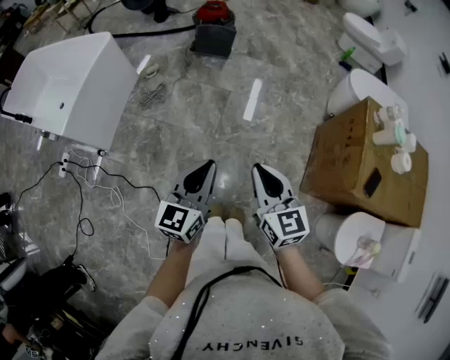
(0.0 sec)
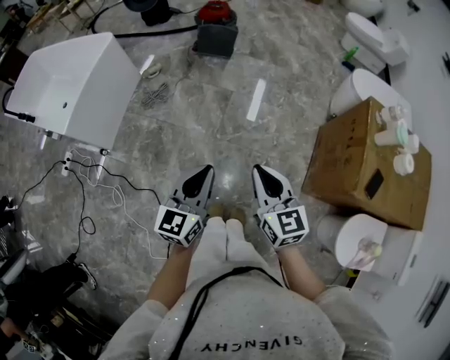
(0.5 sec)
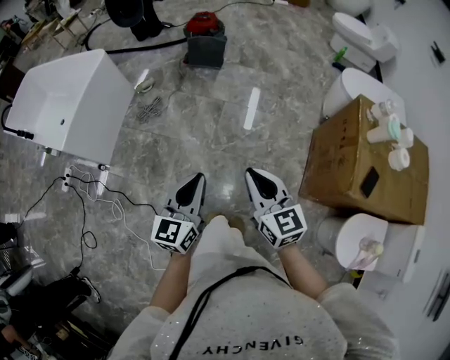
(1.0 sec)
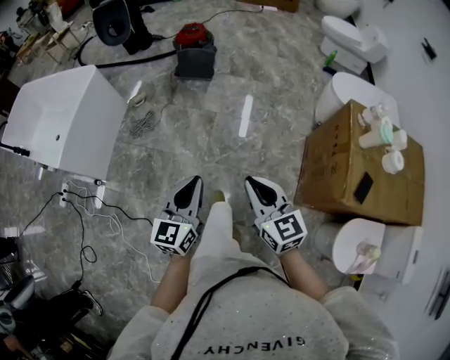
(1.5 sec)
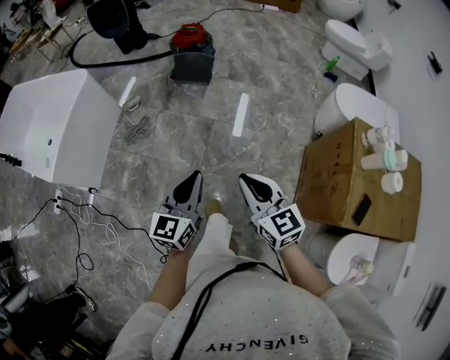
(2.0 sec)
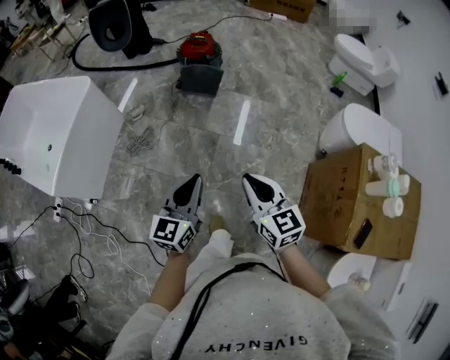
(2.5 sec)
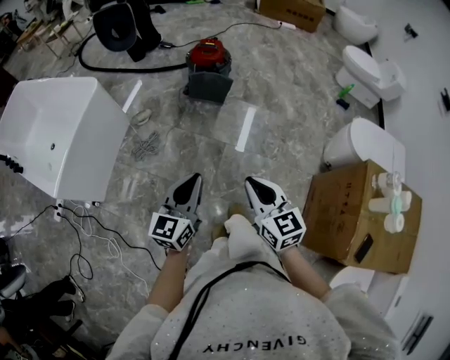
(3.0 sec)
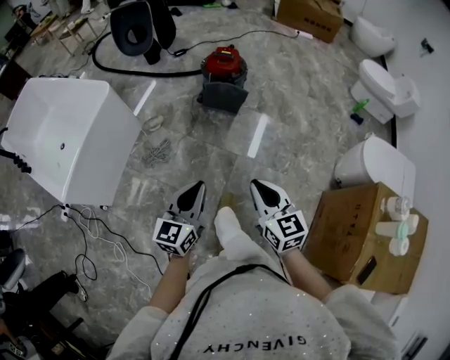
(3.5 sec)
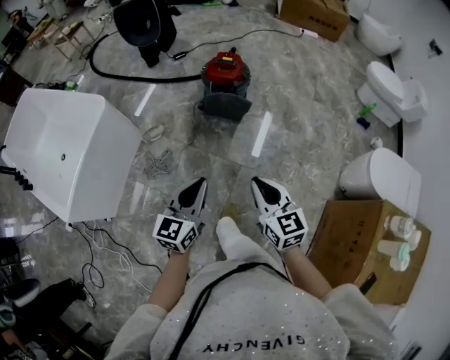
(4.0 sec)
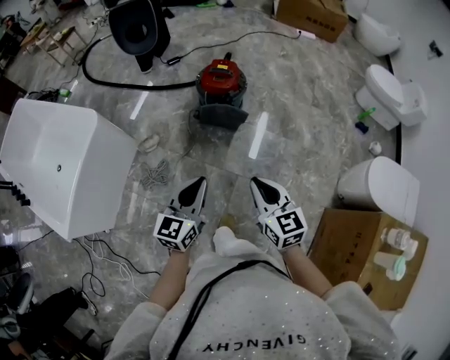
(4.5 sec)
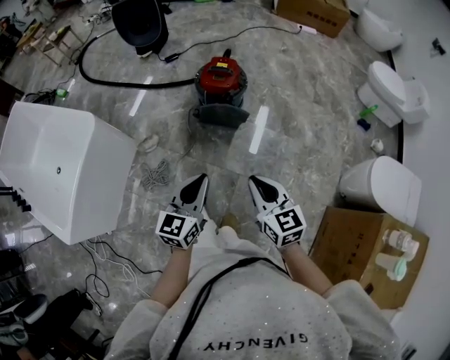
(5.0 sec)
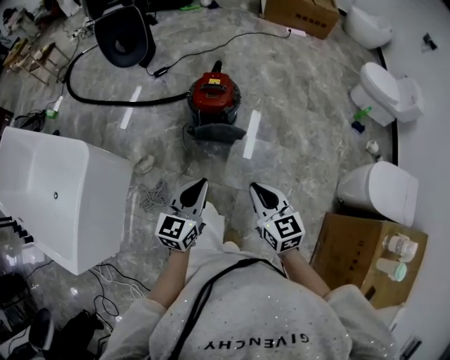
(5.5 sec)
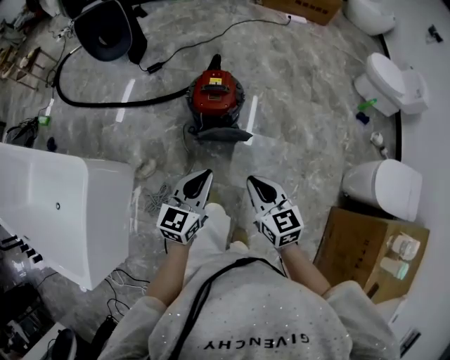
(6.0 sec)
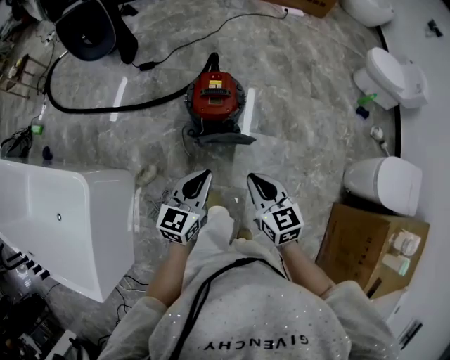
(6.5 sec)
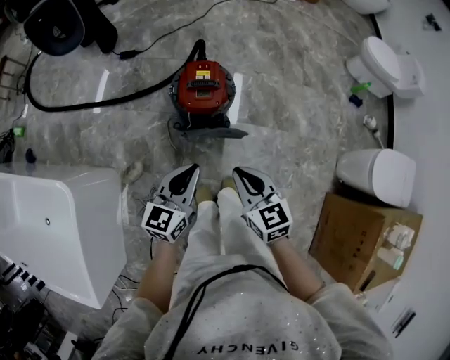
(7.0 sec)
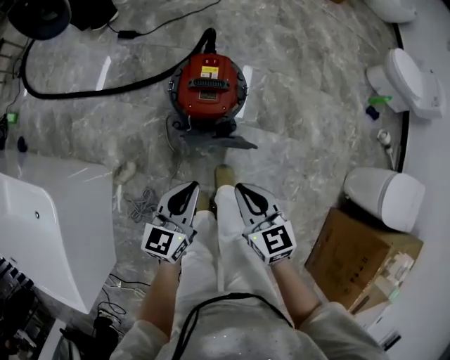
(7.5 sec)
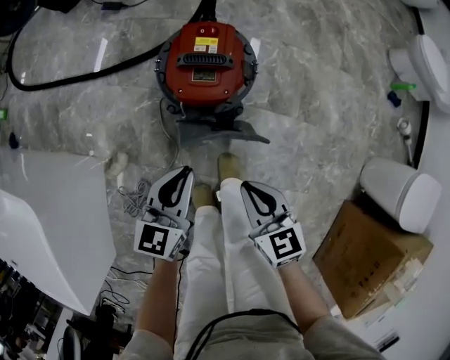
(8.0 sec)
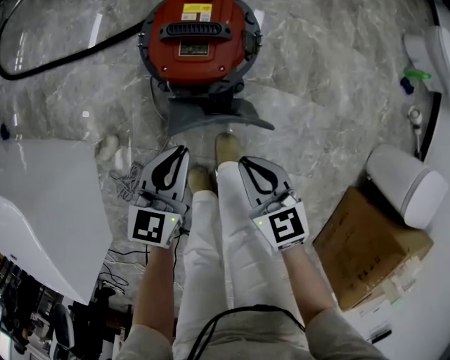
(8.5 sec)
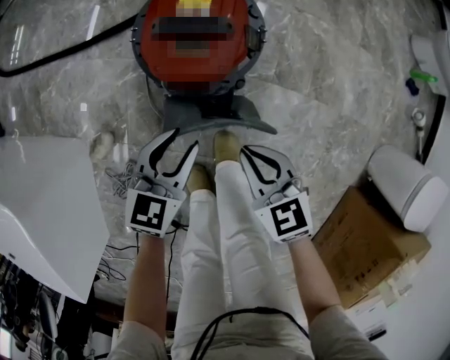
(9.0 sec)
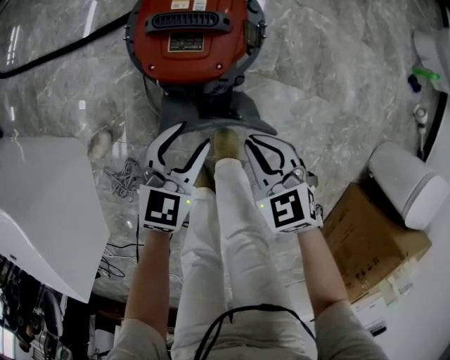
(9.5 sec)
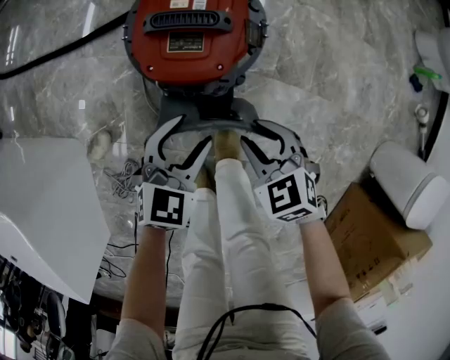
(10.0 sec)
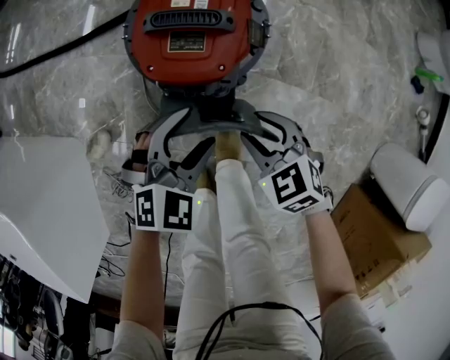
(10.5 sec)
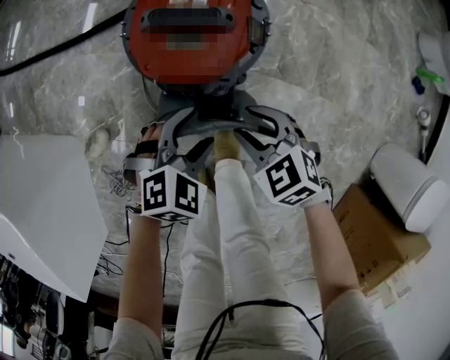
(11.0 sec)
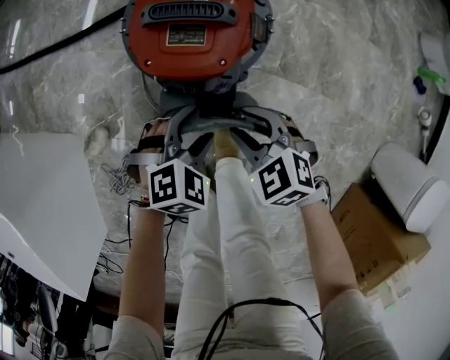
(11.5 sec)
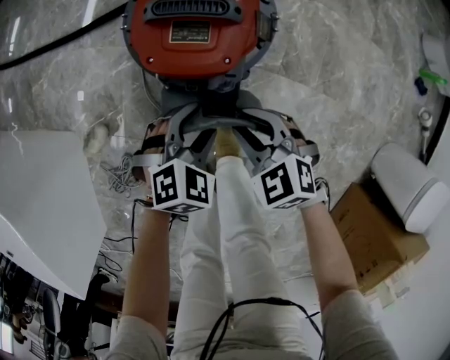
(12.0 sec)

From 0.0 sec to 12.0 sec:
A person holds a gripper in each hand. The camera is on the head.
From 0.0 sec to 2.0 sec: Both grippers move forward, about 15 cm.
From 2.0 sec to 4.0 sec: The two grippers go about 30 cm forward.
From 4.0 sec to 6.0 sec: Both grippers travel together forward, some 30 cm.
From 6.0 sec to 8.0 sec: The grippers both shift downward and forward by approximately 30 cm.
From 8.0 sec to 10.0 sec: The left gripper is displaced downward and to the right by approximately 15 cm, rotates roughly 30 degrees, and opens its fingers. Meanwhile the right gripper travels downward and forward by approximately 15 cm, changes its angle by some 30 degrees, and opens.
From 10.0 sec to 12.0 sec: The left gripper goes roughly 5 cm downward, and changes its angle by some 20 degrees.

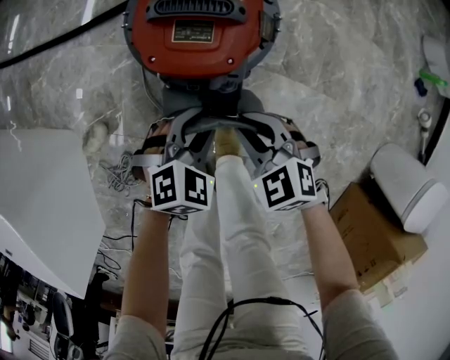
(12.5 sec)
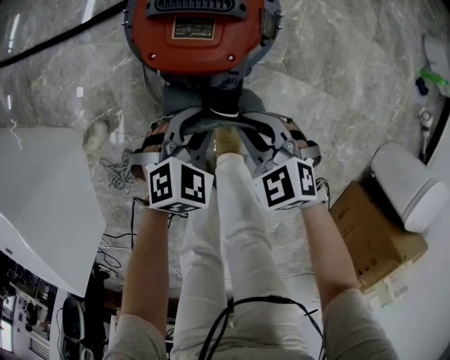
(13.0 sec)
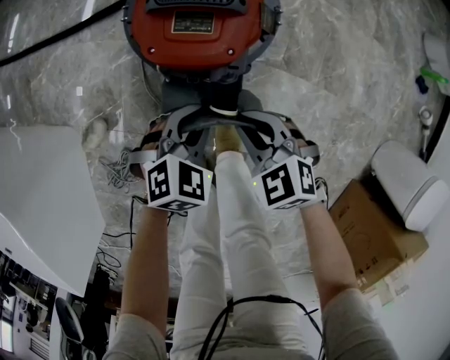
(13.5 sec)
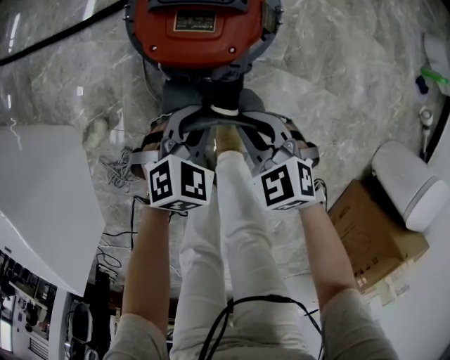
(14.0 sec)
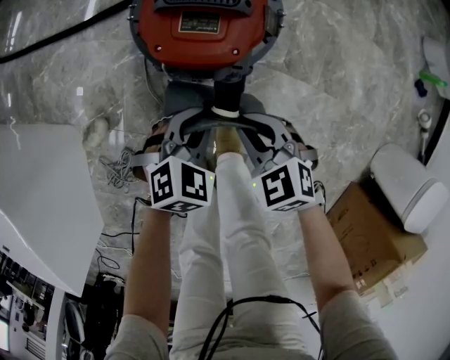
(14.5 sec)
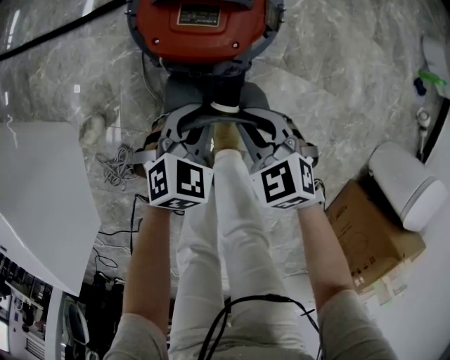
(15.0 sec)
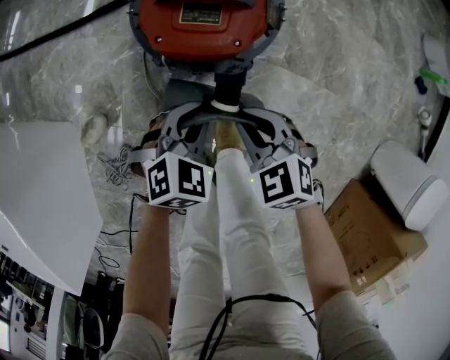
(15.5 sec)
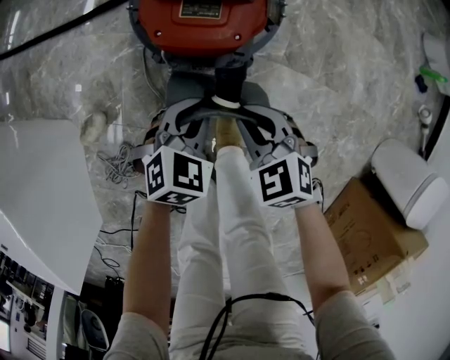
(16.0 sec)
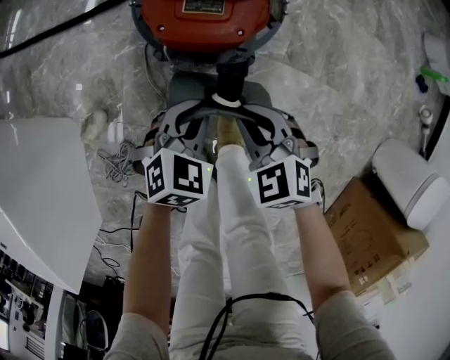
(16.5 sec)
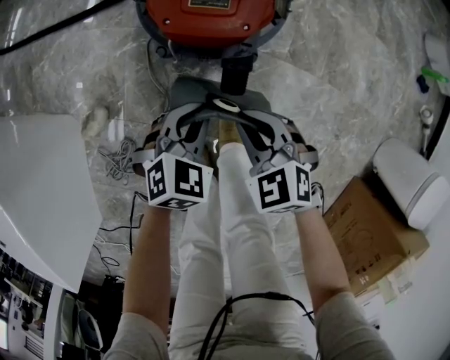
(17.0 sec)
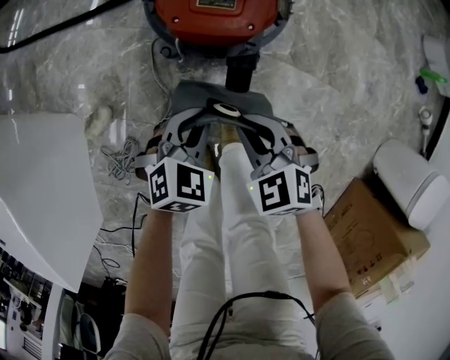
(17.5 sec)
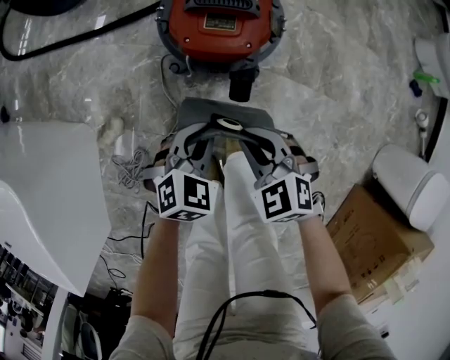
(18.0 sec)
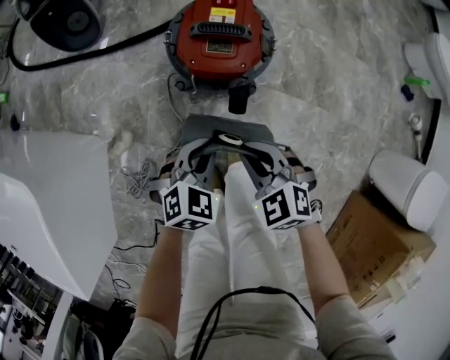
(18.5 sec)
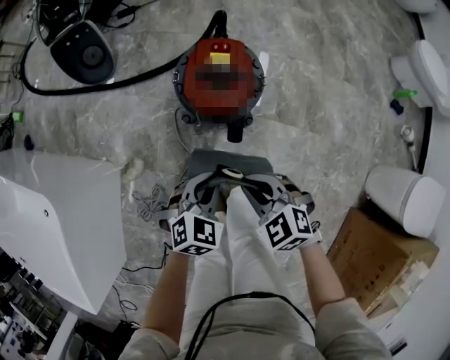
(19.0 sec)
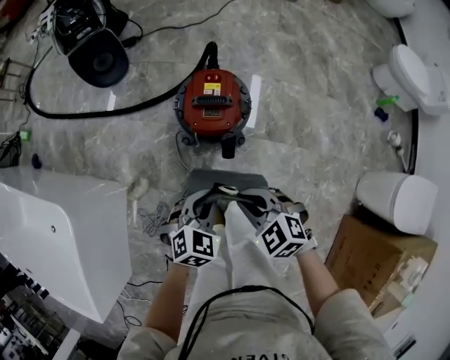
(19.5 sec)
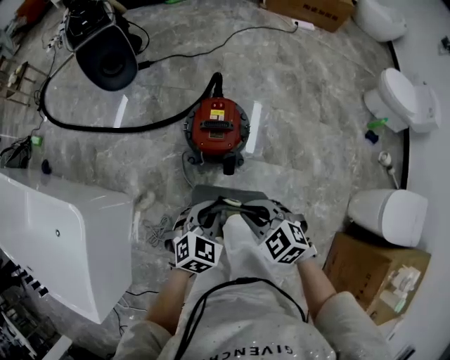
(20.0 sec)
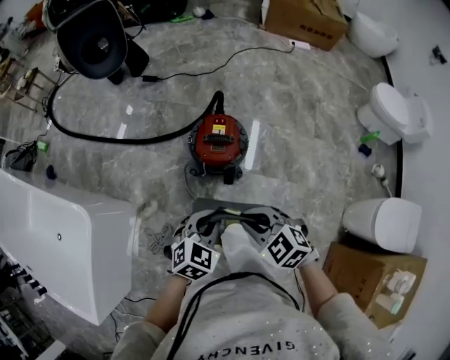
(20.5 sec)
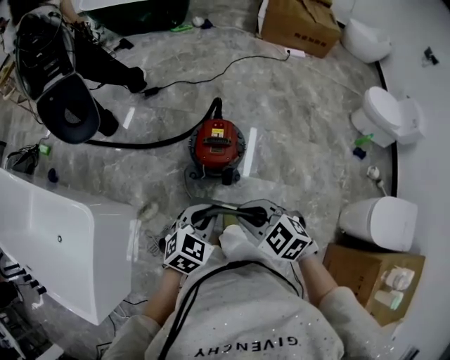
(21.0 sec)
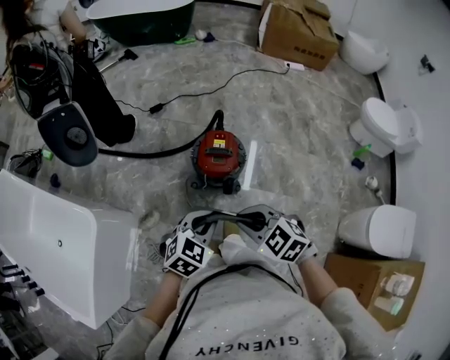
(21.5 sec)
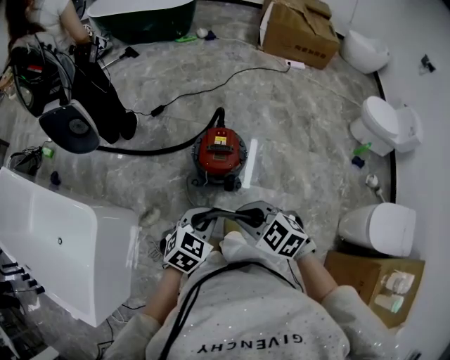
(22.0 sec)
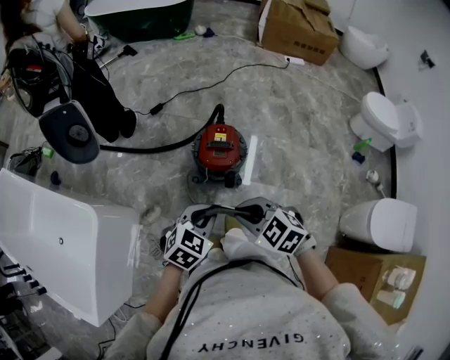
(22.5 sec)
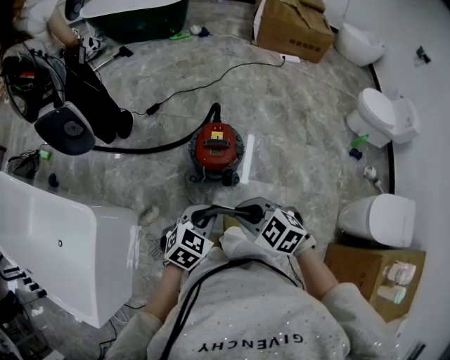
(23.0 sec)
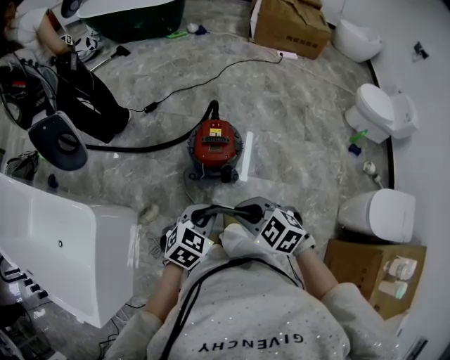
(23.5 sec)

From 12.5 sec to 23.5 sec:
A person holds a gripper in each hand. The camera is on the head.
From 12.5 sec to 16.0 sec: The grippers make only small movements.
From 16.0 sec to 18.0 sec: Both grippers move upward, approximately 5 cm.
From 18.0 sec to 20.0 sec: The two grippers go roughly 25 cm upward.
From 20.0 sec to 21.5 sec: Both grippers move upward, approximately 10 cm.
From 21.5 sec to 23.5 sec: The grippers move only a little.

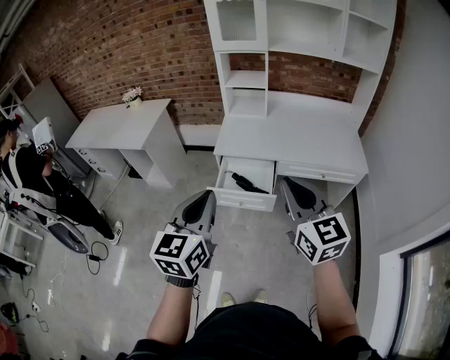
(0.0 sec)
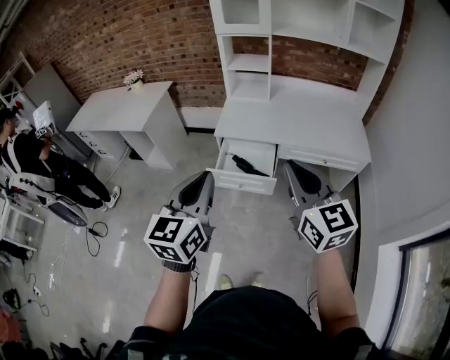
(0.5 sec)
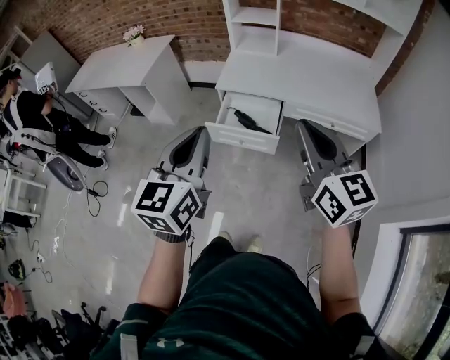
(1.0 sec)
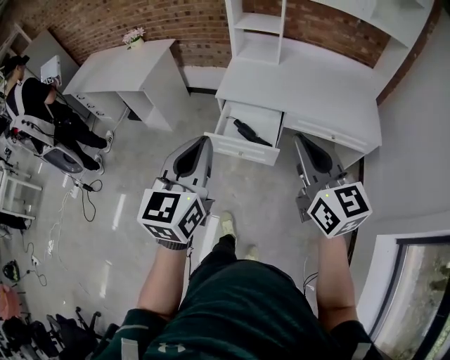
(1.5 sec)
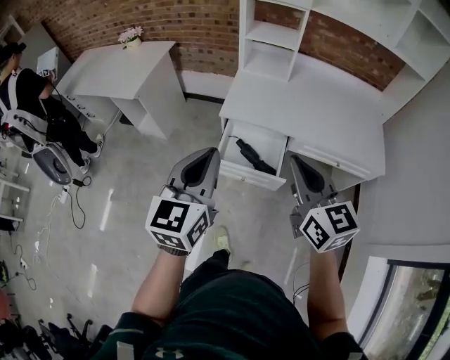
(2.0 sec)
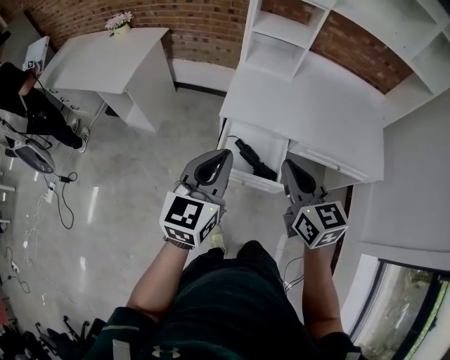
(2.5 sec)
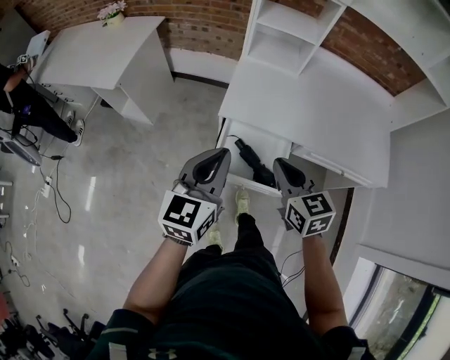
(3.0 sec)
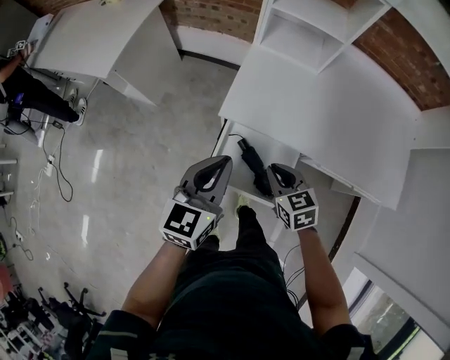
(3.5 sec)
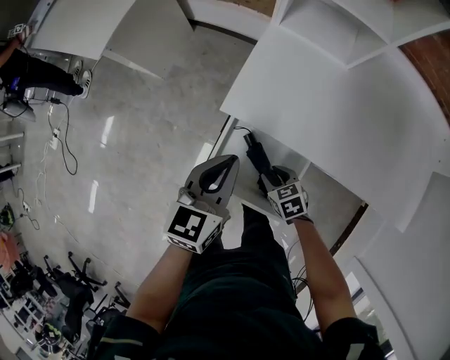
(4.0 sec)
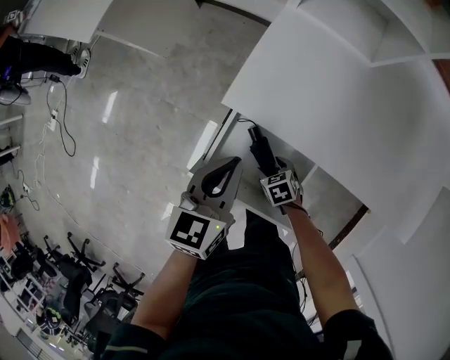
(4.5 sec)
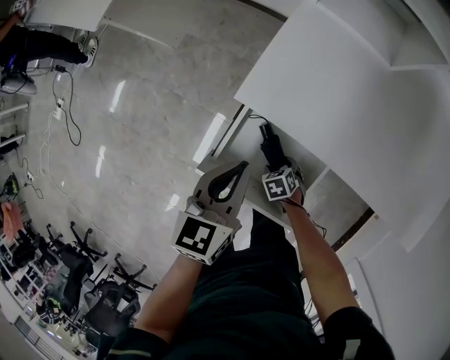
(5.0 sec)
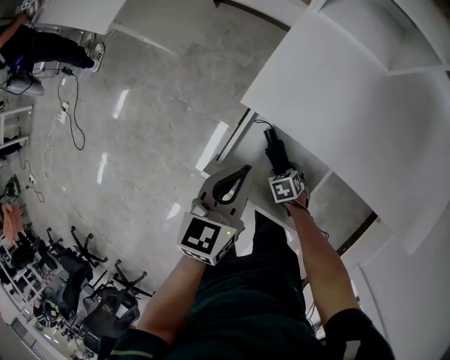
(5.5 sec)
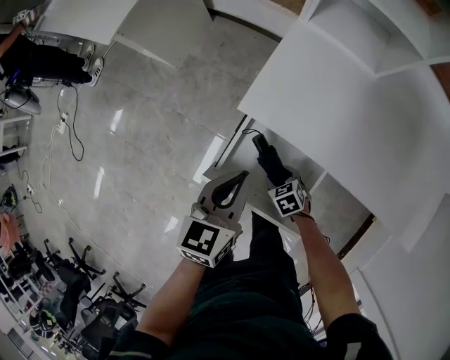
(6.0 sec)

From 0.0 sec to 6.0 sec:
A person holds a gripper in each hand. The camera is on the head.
From 0.0 sec to 2.0 sec: The right gripper travels forward and downward by about 15 cm. Meanwhile the left gripper is displaced forward by approximately 15 cm.
From 2.0 sec to 4.0 sec: The left gripper goes some 40 cm forward and downward, and rotates roughly 20 degrees. Meanwhile the right gripper is displaced downward and forward by some 50 cm, angles its fingers downward, by some 50 degrees, and opens up.
From 4.0 sec to 6.0 sec: The left gripper heads downward, covering some 5 cm, while the right gripper shifts roughly 10 cm downward, and opens its fingers.
